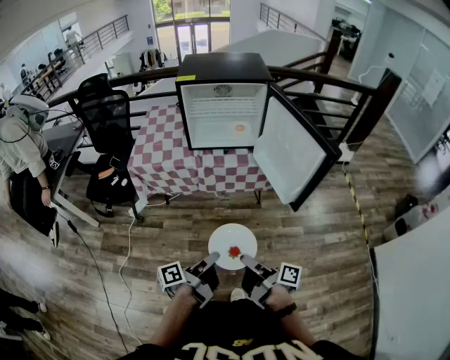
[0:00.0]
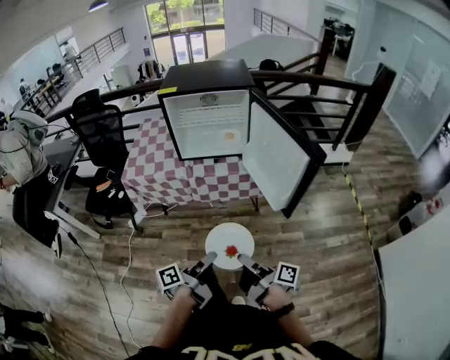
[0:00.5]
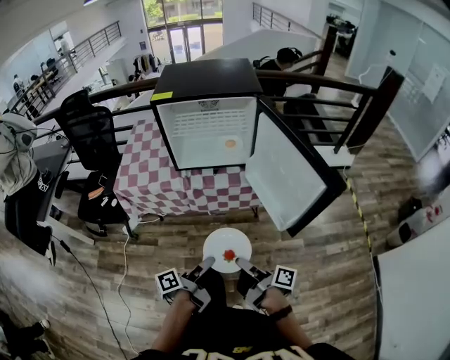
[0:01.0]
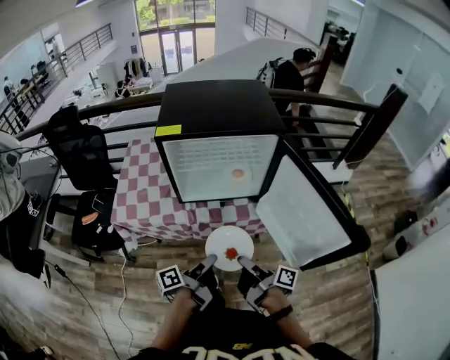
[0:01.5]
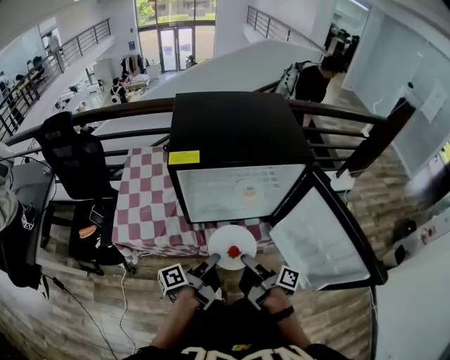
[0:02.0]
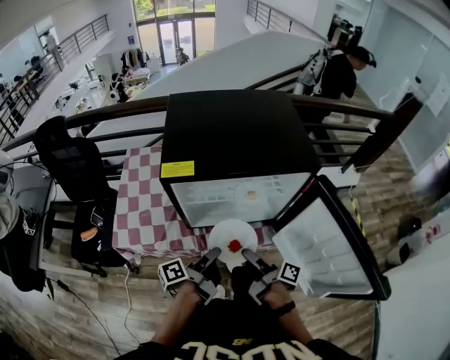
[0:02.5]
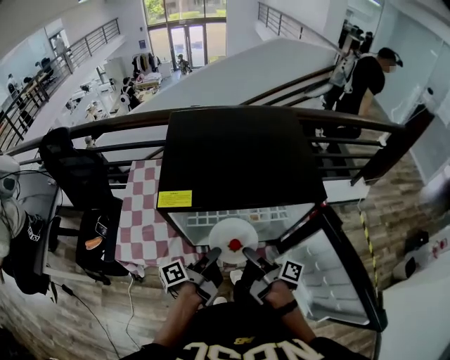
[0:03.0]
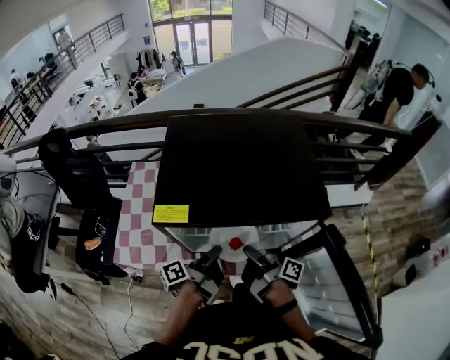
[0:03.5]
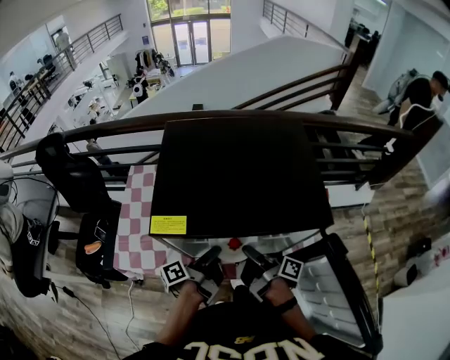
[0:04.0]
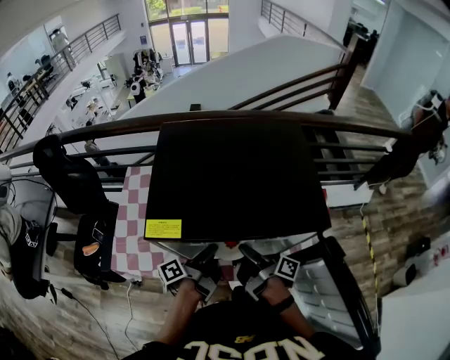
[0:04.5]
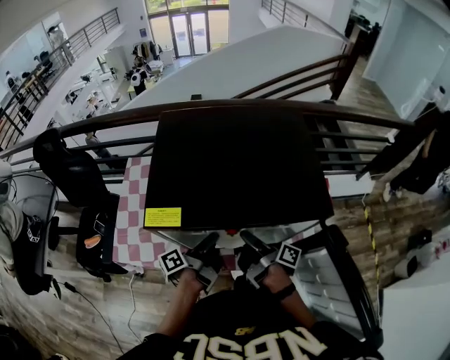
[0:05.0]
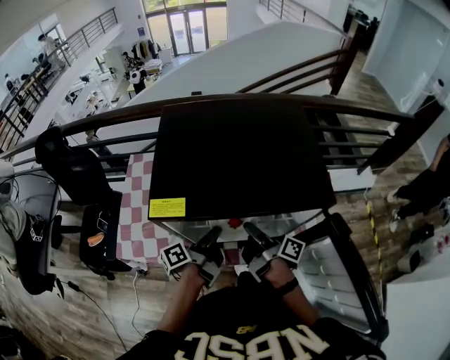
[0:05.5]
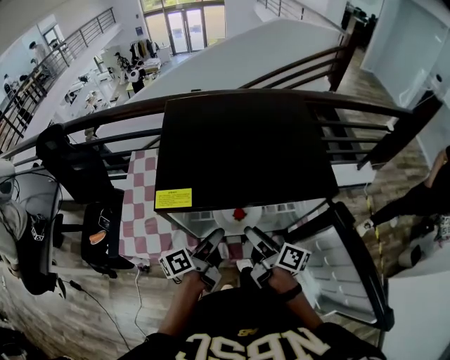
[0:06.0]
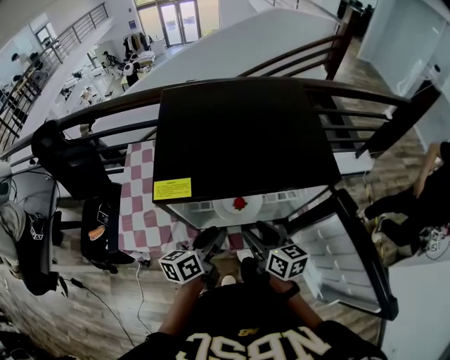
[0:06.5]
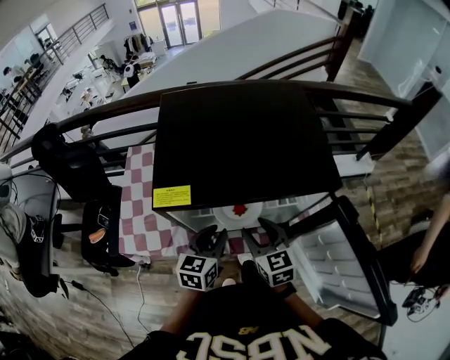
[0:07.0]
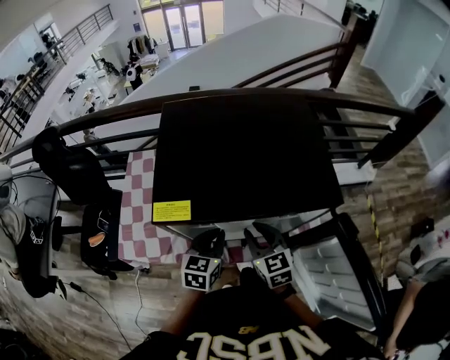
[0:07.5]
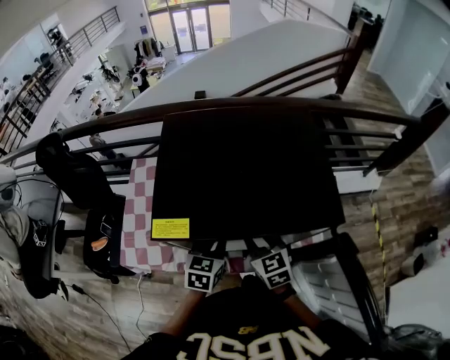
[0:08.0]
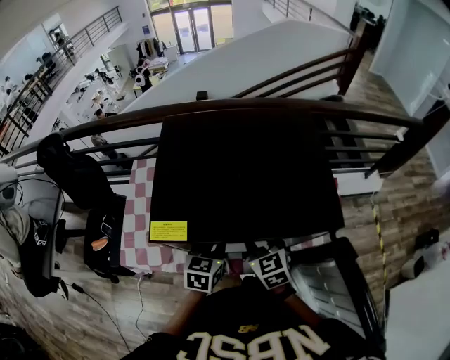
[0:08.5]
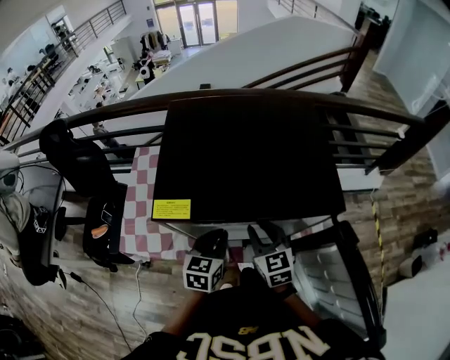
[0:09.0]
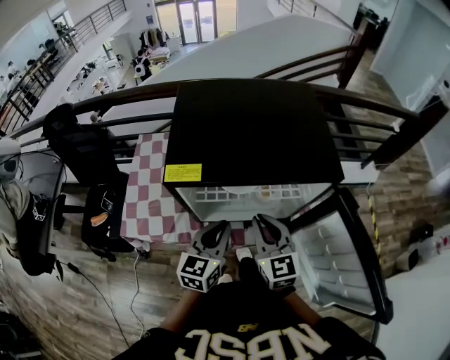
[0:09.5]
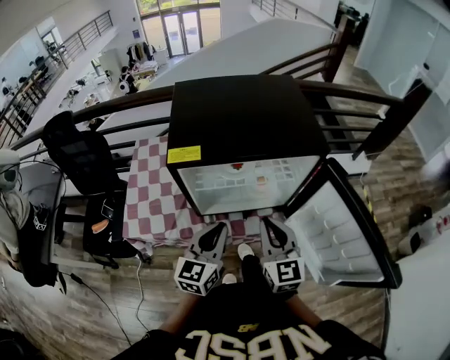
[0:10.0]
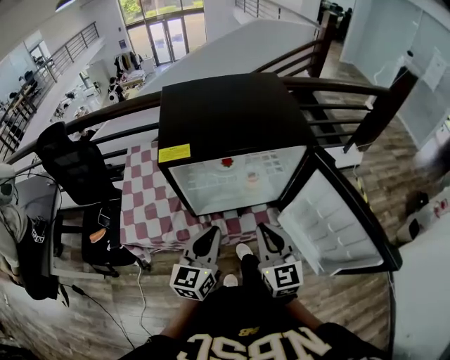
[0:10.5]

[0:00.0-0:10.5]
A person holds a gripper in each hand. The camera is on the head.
0.0 to 2.0 s: The two grippers travel together, forward, roughly 40 cm.
2.0 to 4.0 s: The grippers both shift forward by roughly 20 cm.
4.0 to 6.5 s: The left gripper twists approximately 50 degrees clockwise, seen from behind, and opens its fingers; the right gripper rolls counterclockwise, seen from behind, by some 60 degrees, and opens its fingers.
6.5 to 8.5 s: The grippers both shift forward by about 10 cm. The left gripper rotates about 40 degrees, and closes. Meanwhile the right gripper rotates approximately 40 degrees, and closes.
8.5 to 10.5 s: The left gripper is displaced backward and upward by roughly 20 cm, and turns by about 30 degrees, while the right gripper moves backward, approximately 20 cm, and turns by about 30 degrees.

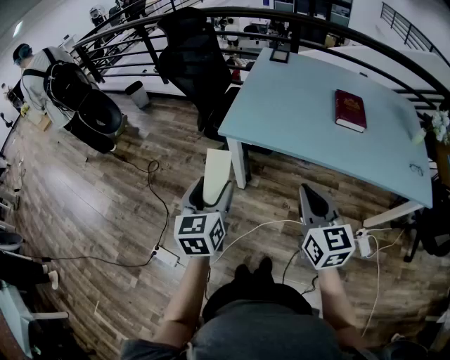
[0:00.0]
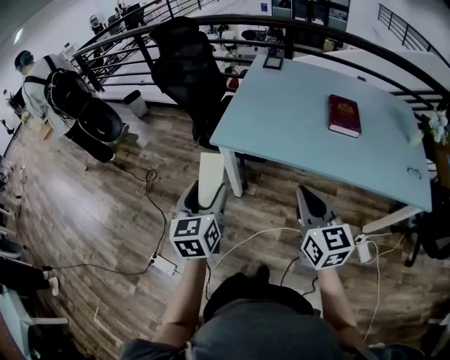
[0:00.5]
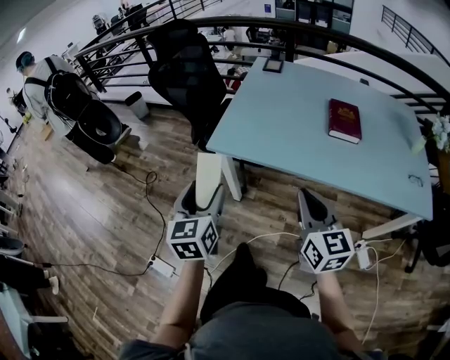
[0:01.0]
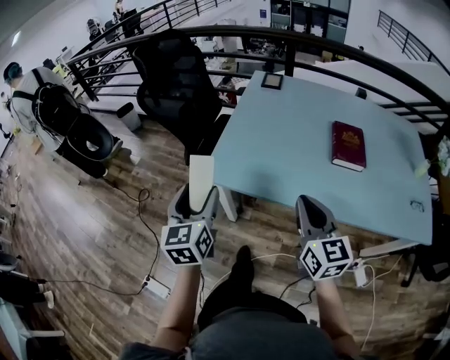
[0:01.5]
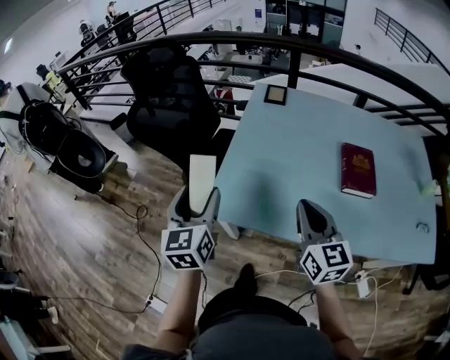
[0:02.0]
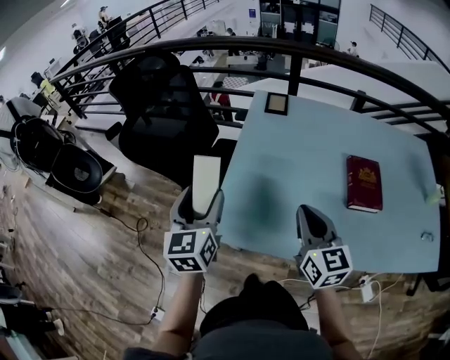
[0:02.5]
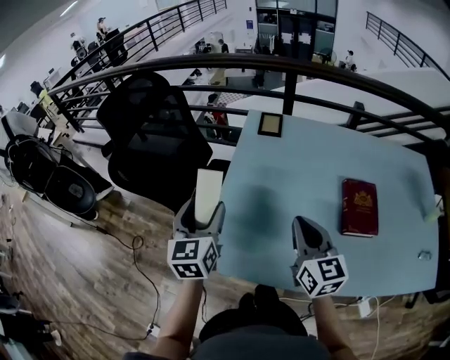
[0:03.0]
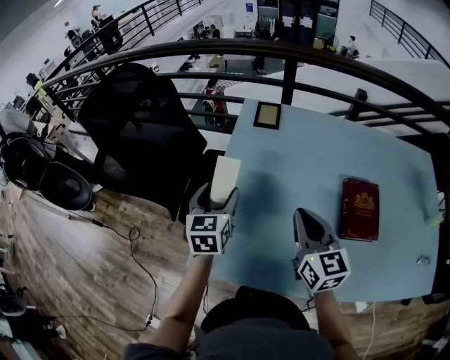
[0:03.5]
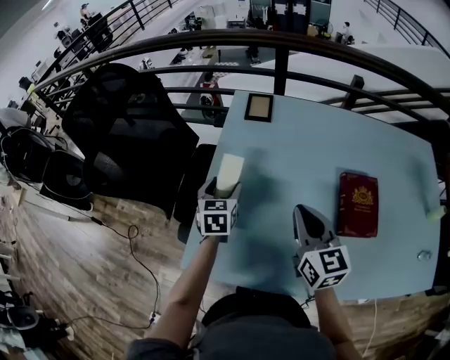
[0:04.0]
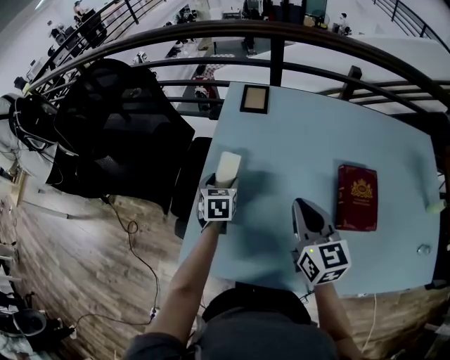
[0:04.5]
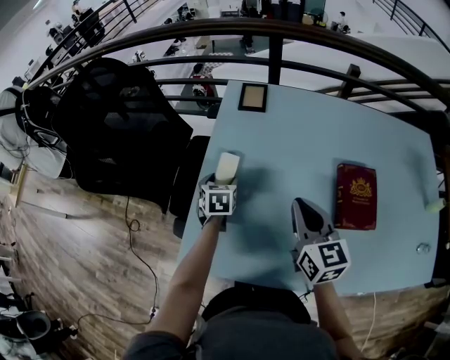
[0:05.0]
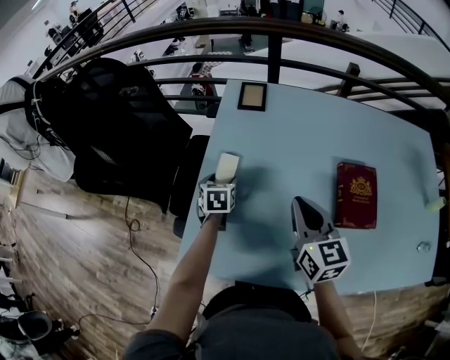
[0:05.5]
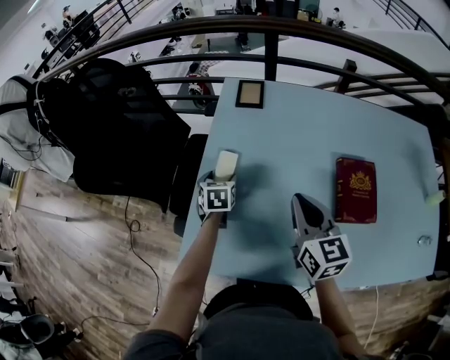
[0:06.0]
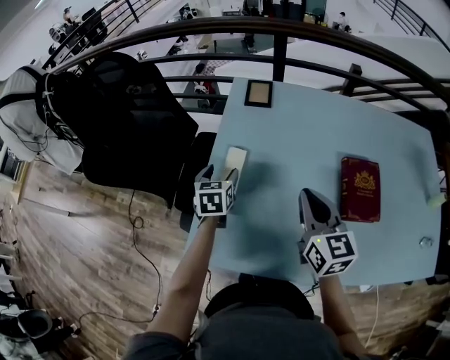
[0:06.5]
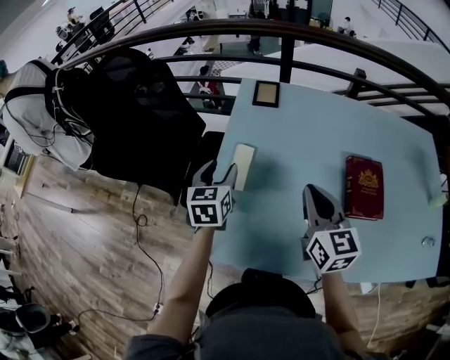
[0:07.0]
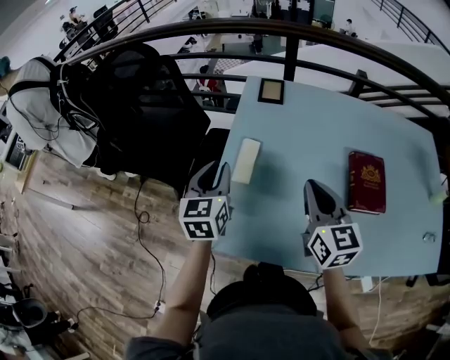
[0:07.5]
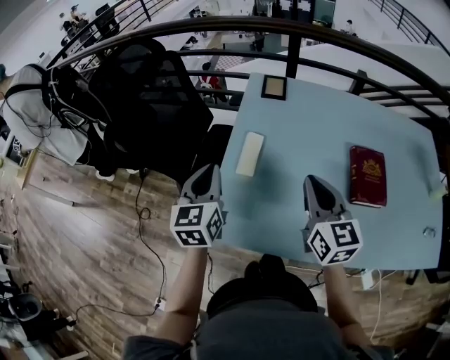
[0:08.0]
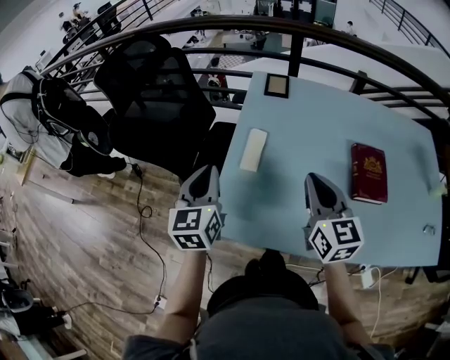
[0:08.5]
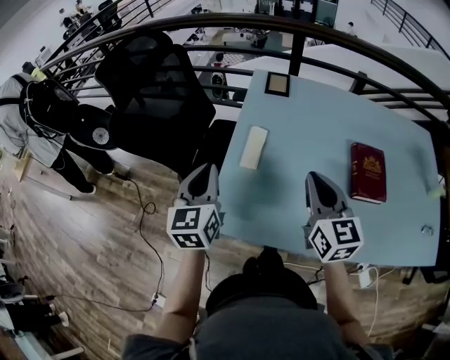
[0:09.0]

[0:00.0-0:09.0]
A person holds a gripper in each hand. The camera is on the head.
0.0 to 2.0 s: The grippers both shift forward by roughly 30 cm.
2.0 to 4.5 s: The right gripper shifts roughly 20 cm forward. Meanwhile the left gripper is displaced forward, downward and to the right by about 40 cm, and tilts its fingers about 30 degrees downward.
4.5 to 7.0 s: The left gripper moves upward, approximately 10 cm.
7.0 to 9.0 s: The left gripper is displaced backward, to the left and upward by some 15 cm, and closes its fingers, while the right gripper ends up approximately 5 cm from where it was.

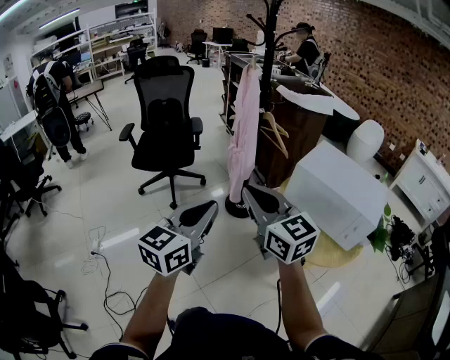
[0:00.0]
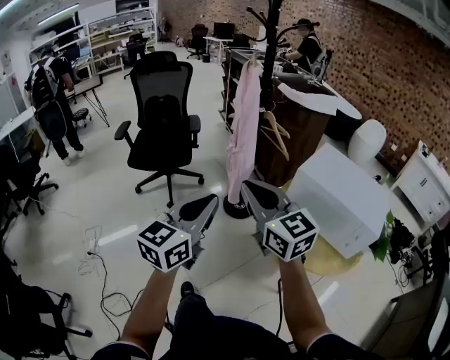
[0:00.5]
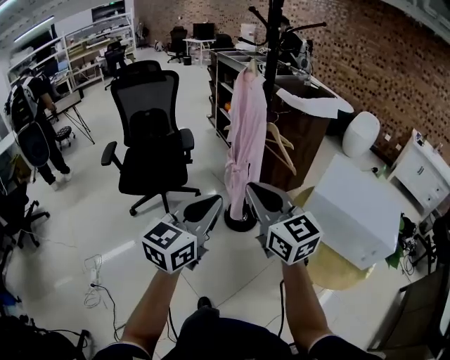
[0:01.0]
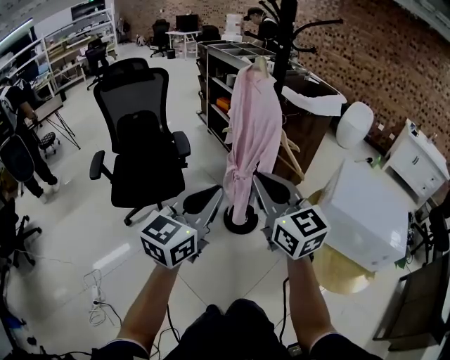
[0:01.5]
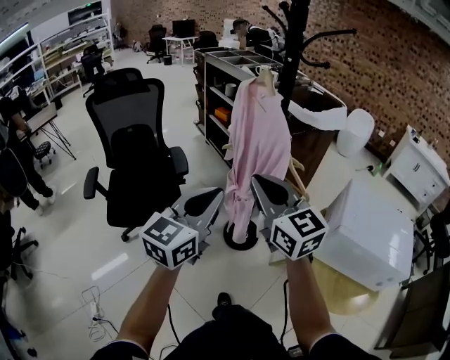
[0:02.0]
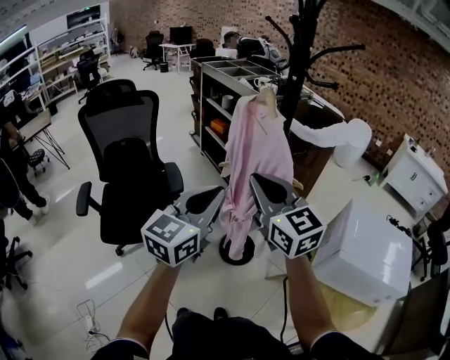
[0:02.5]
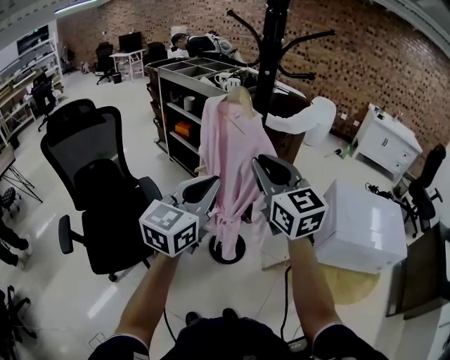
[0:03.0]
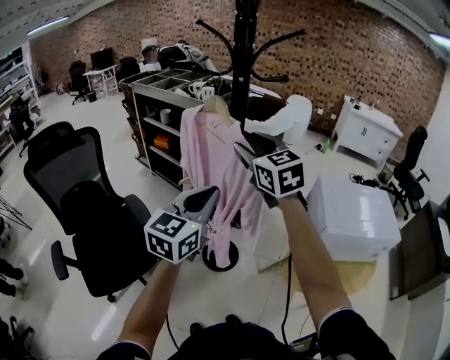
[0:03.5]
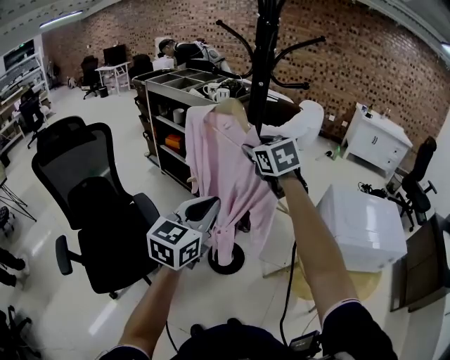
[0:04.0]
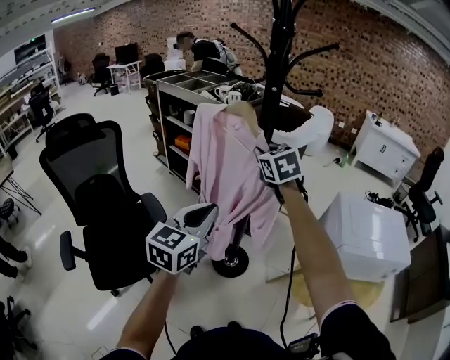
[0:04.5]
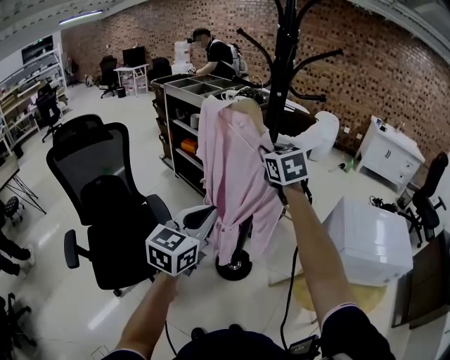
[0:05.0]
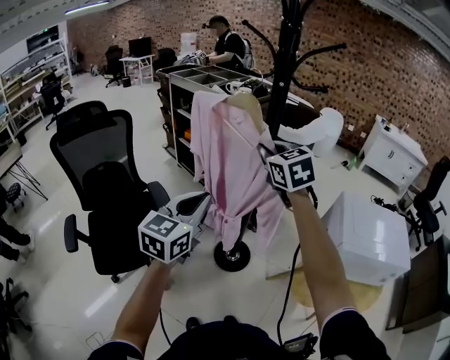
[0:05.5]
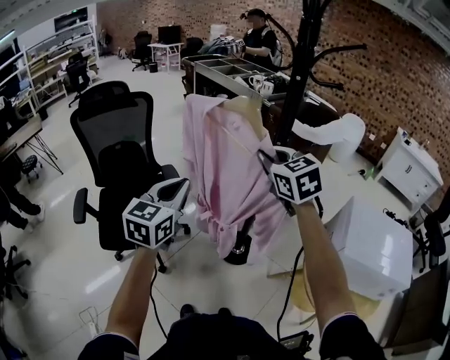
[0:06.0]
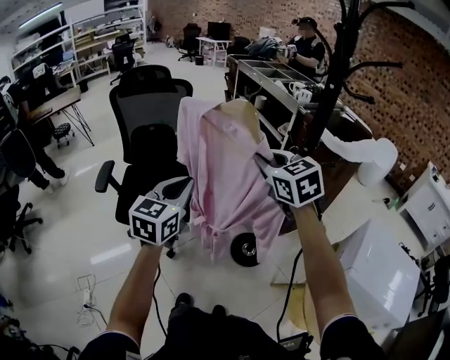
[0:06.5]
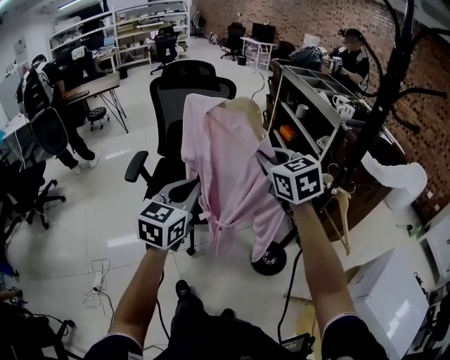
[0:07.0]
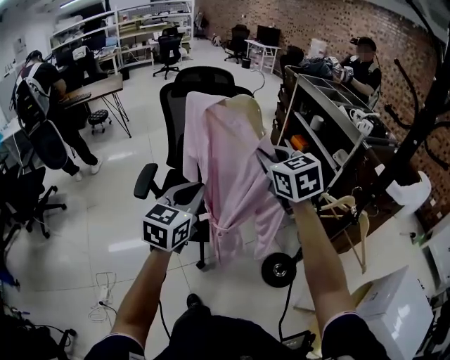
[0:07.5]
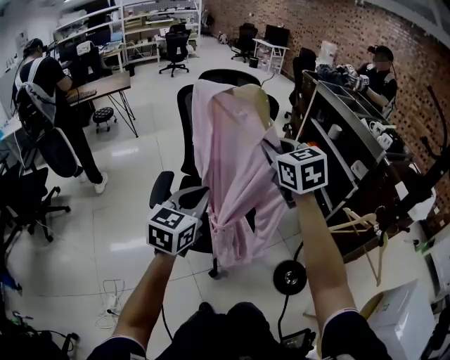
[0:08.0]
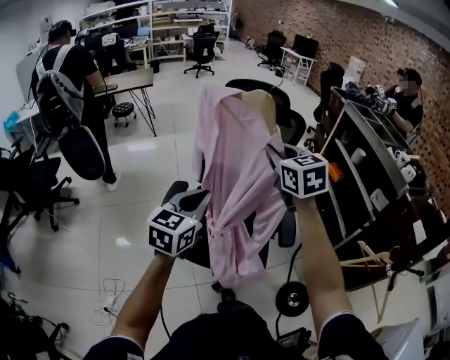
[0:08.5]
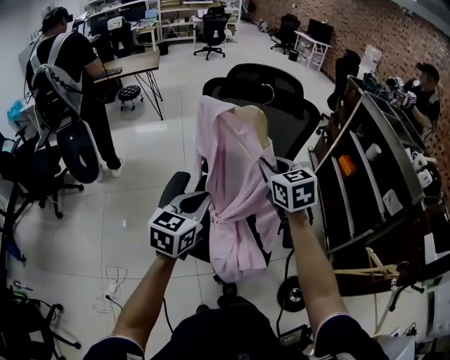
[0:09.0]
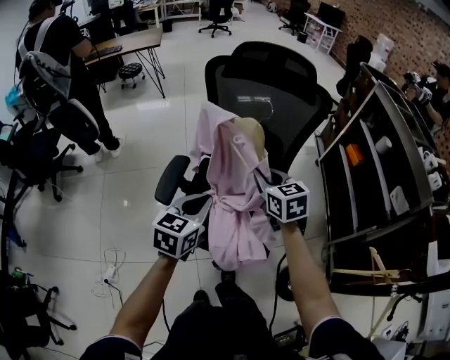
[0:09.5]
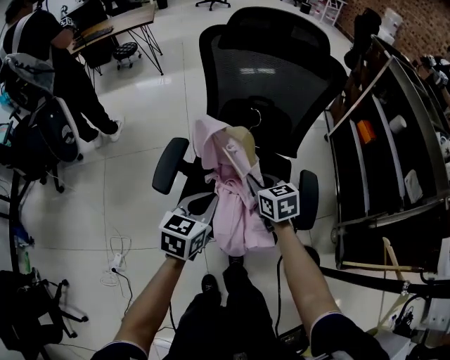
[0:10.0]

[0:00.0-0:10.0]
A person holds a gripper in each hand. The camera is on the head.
0.0 to 2.0 s: The two grippers go some 40 cm forward.
2.0 to 4.0 s: The right gripper moves forward, about 30 cm, swivels approximately 40 degrees, and opens. The left gripper is displaced forward by some 15 cm.
4.0 to 6.0 s: The right gripper is displaced backward by roughly 10 cm, swivels about 20 degrees, and closes. The left gripper is displaced to the left by approximately 10 cm, and swivels some 30 degrees.
6.0 to 8.0 s: The right gripper moves roughly 40 cm, and swivels approximately 20 degrees, while the left gripper changes place by roughly 35 cm, and turns by about 20 degrees.
8.0 to 10.0 s: The left gripper shifts some 20 cm downward and forward, and changes its angle by roughly 20 degrees; the right gripper moves downward, roughly 35 cm, and turns by approximately 30 degrees.
